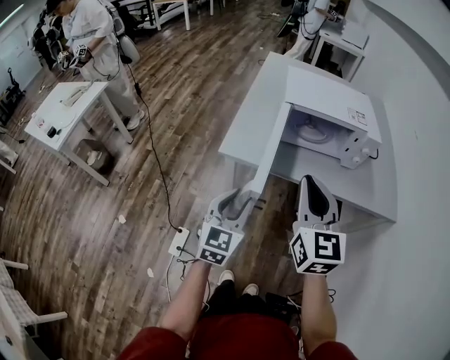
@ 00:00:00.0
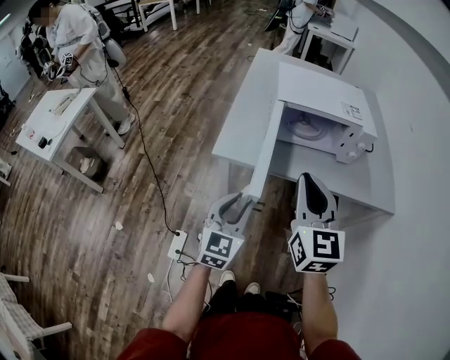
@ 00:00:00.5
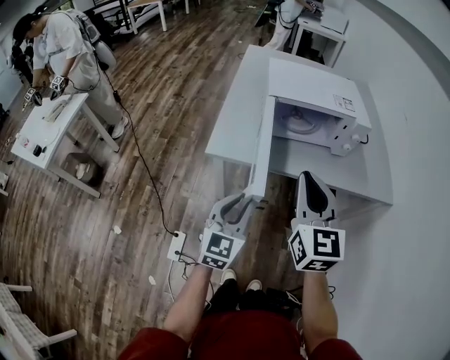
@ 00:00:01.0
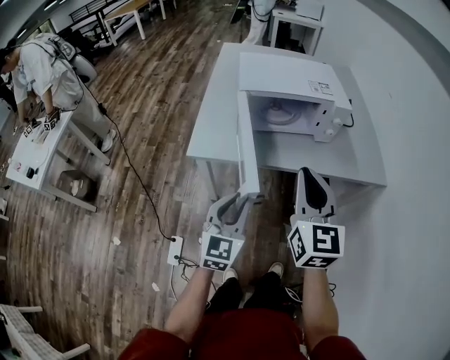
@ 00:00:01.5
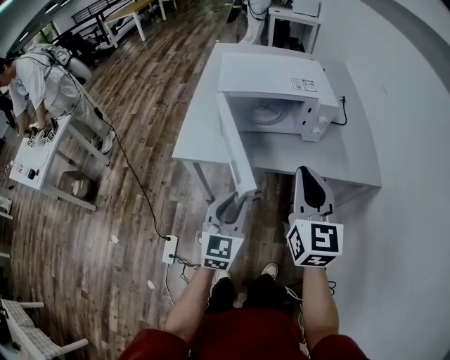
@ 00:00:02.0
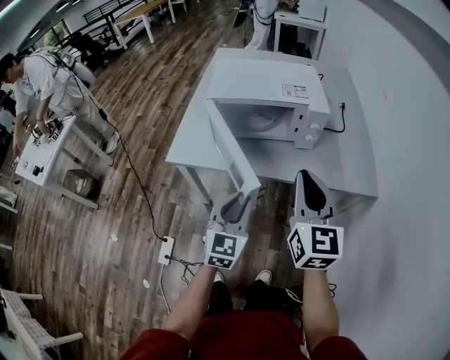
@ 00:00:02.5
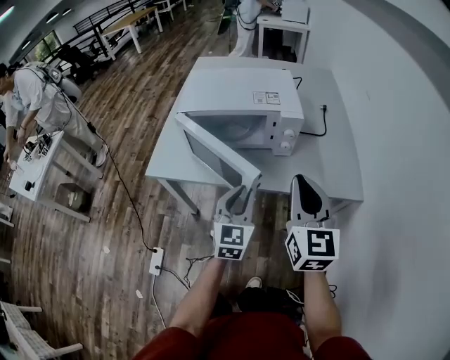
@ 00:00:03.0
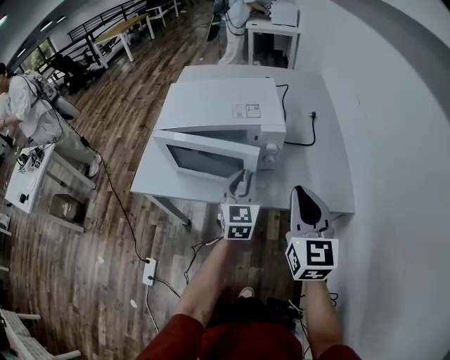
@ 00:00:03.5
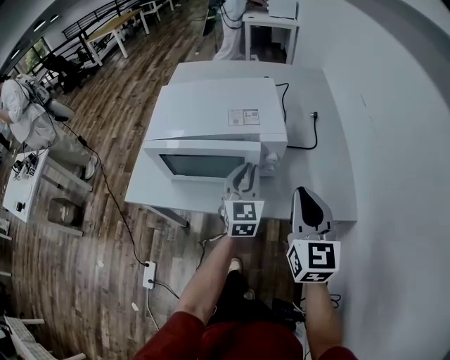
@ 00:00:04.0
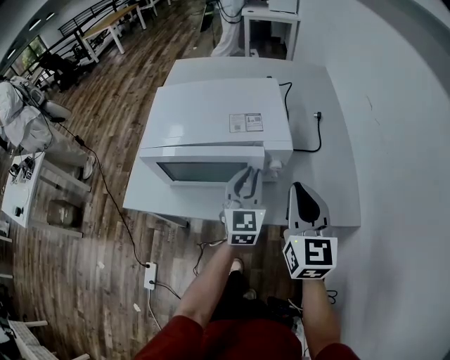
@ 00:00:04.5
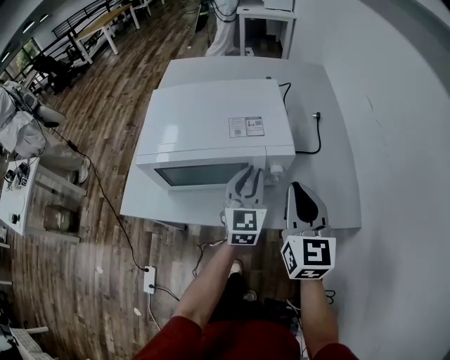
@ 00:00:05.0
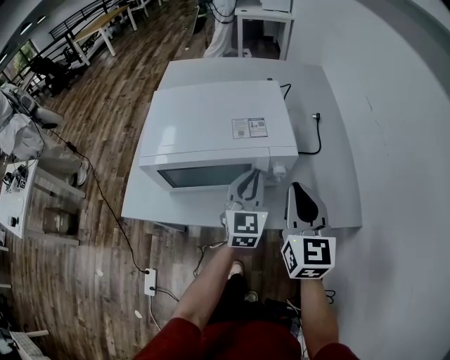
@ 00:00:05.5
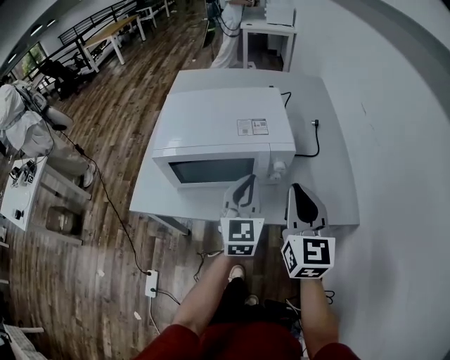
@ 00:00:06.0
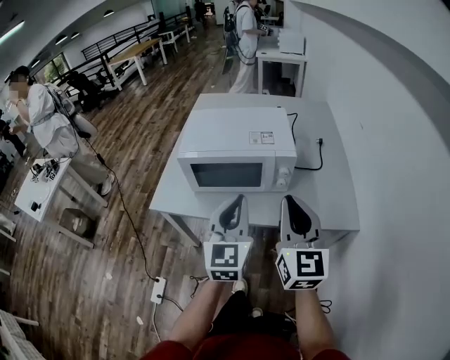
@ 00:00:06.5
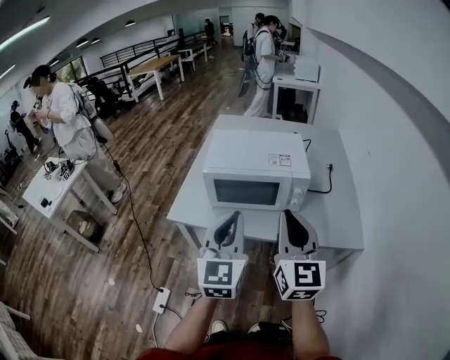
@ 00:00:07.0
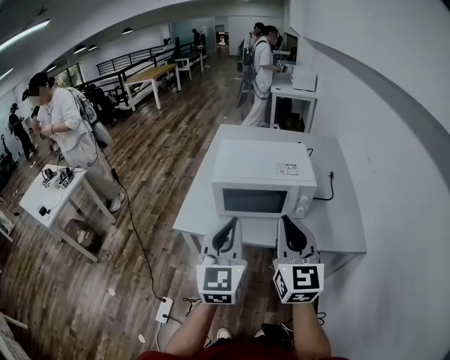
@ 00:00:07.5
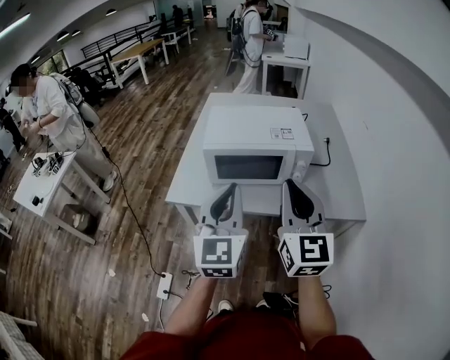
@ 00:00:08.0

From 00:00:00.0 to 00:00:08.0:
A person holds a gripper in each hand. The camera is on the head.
From 00:00:00.0 to 00:00:02.0: The two grippers go some 15 cm to the right.
From 00:00:02.0 to 00:00:04.0: The right gripper is displaced to the right and forward by some 25 cm, while the left gripper shifts about 35 cm forward and to the right.
From 00:00:04.0 to 00:00:06.0: The right gripper moves approximately 5 cm. The left gripper shifts about 5 cm upward.
From 00:00:06.0 to 00:00:08.0: The left gripper goes about 30 cm backward, to the left and upward. Meanwhile the right gripper travels to the left, backward and upward by approximately 20 cm.

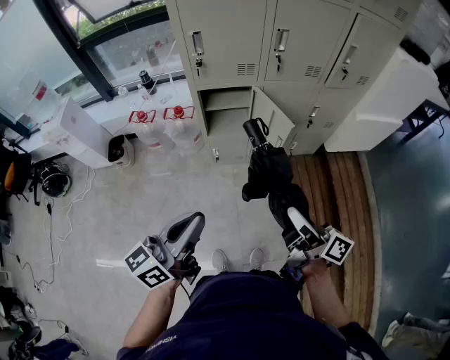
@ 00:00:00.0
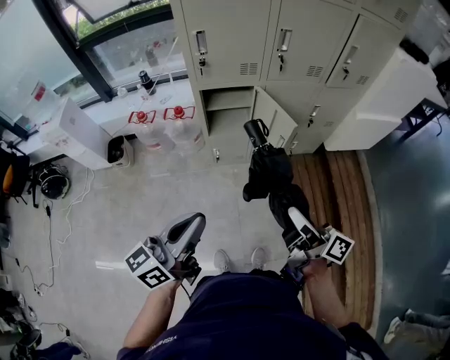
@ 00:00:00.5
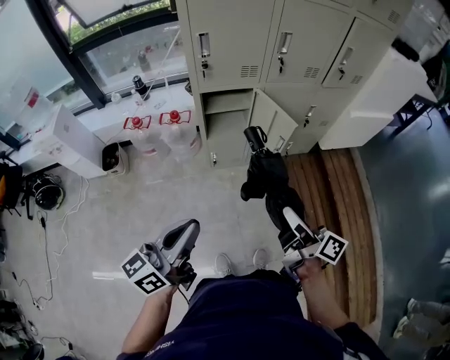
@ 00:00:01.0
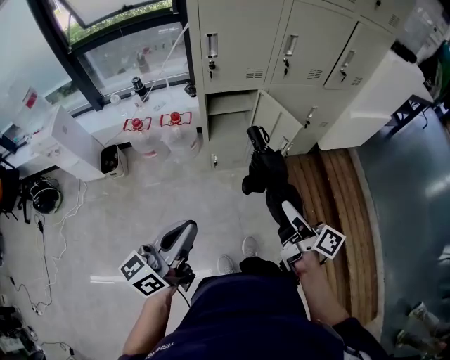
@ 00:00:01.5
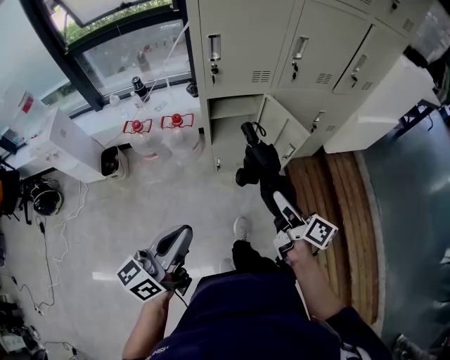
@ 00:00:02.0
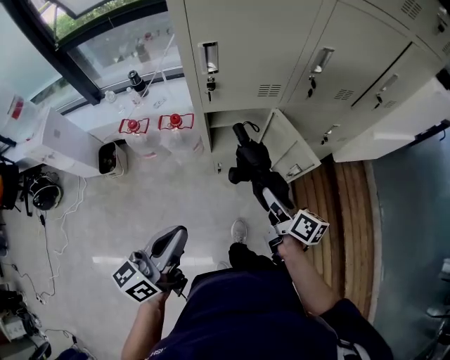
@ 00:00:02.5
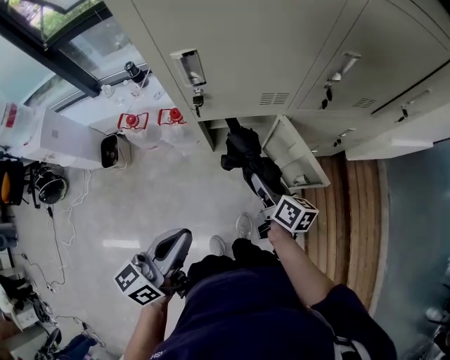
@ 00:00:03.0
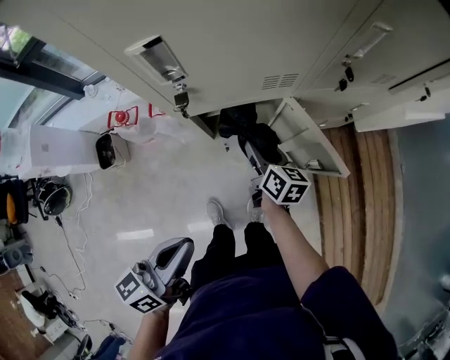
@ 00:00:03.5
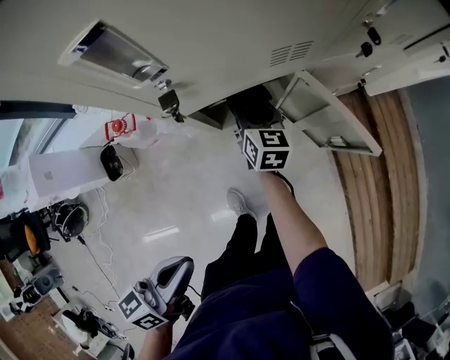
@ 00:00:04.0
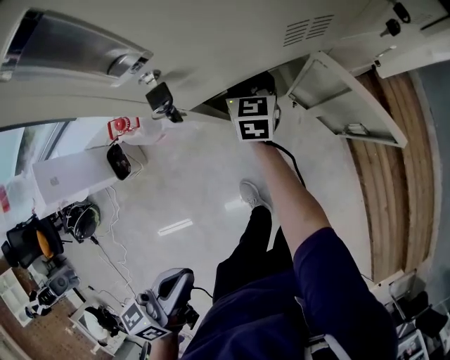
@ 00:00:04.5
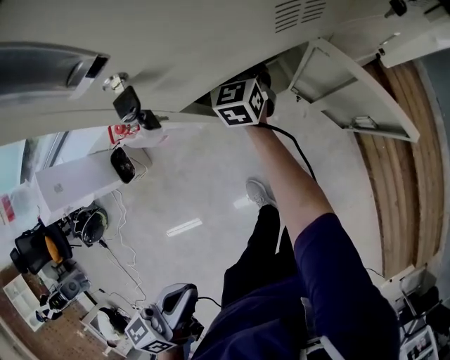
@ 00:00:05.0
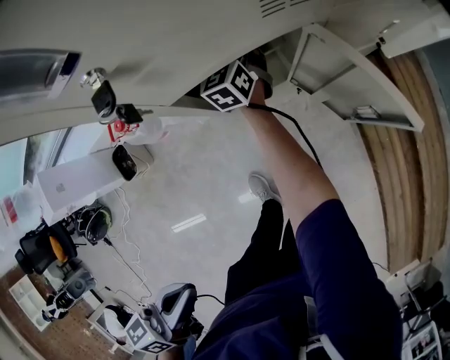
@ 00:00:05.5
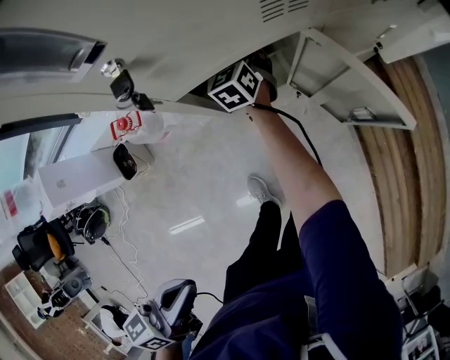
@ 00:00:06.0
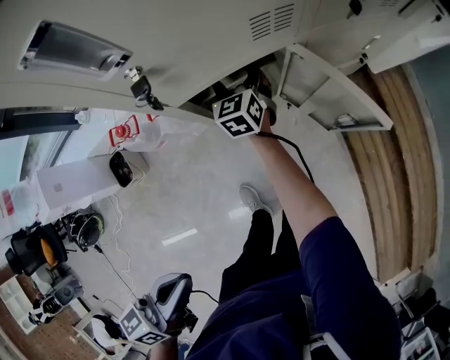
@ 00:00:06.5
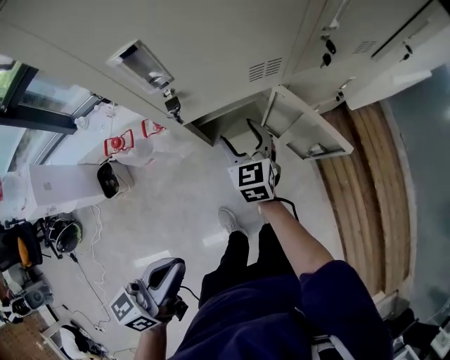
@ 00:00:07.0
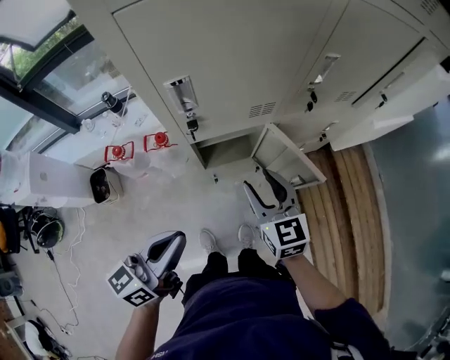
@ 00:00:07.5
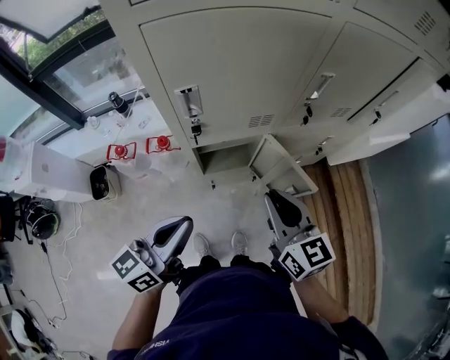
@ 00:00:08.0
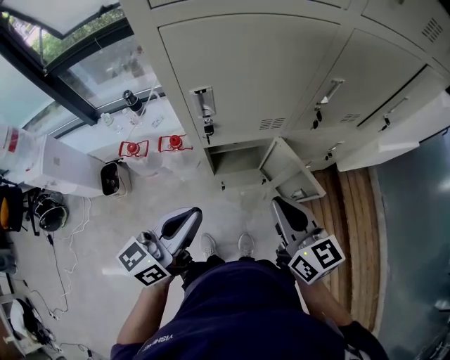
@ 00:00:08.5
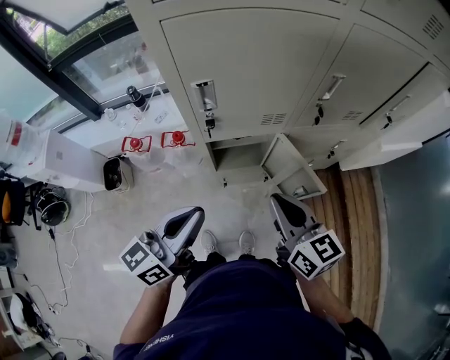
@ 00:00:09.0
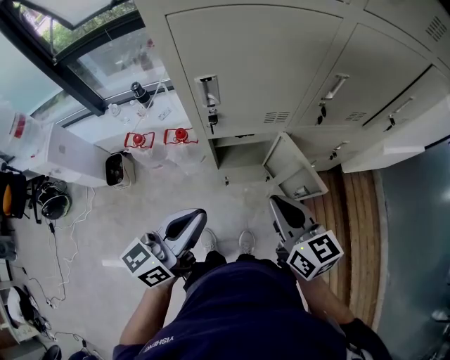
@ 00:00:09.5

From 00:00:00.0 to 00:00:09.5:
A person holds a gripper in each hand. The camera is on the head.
From 00:00:00.0 to 00:00:02.0: The left gripper shifts approximately 15 cm to the left. The right gripper heads to the left, forward and downward, covering roughly 15 cm.
From 00:00:02.0 to 00:00:04.0: The right gripper travels forward and downward by roughly 50 cm, and swivels approximately 40 degrees. The left gripper shifts approximately 25 cm forward and downward, and changes its angle by about 30 degrees.
From 00:00:04.0 to 00:00:05.5: The right gripper heads forward, to the left and downward, covering about 15 cm, and turns by about 40 degrees.
From 00:00:05.5 to 00:00:07.5: The right gripper moves upward, backward and to the right, roughly 40 cm, and rotates roughly 20 degrees; the left gripper is displaced upward and forward by some 10 cm, and changes its angle by approximately 30 degrees.
From 00:00:07.5 to 00:00:09.5: The left gripper ends up roughly 5 cm from where it was; the right gripper is displaced upward and backward by about 10 cm, rotates approximately 20 degrees, and closes its fingers.

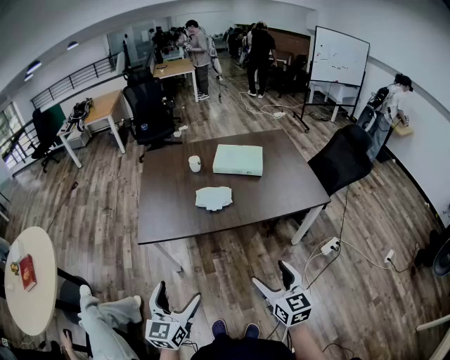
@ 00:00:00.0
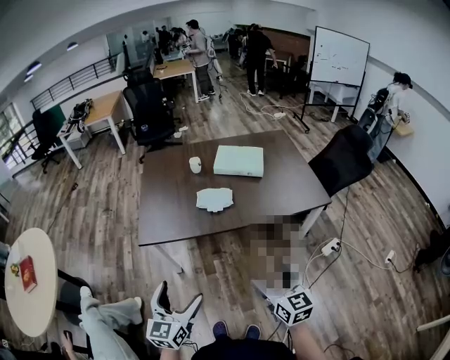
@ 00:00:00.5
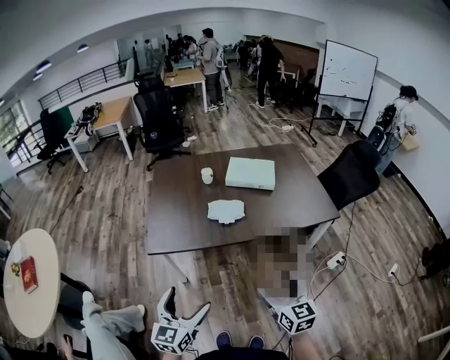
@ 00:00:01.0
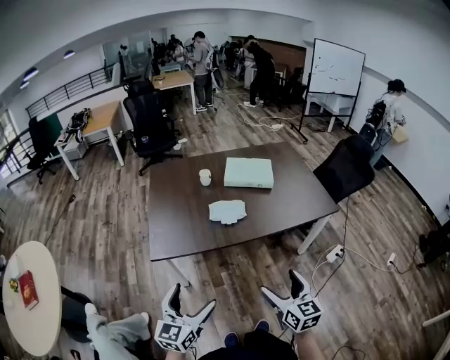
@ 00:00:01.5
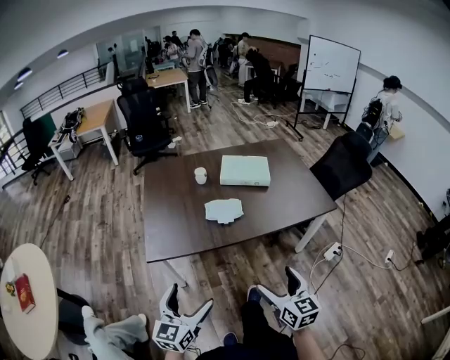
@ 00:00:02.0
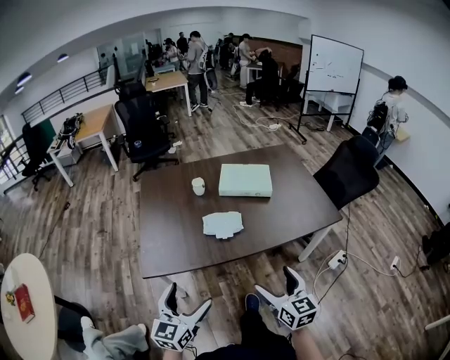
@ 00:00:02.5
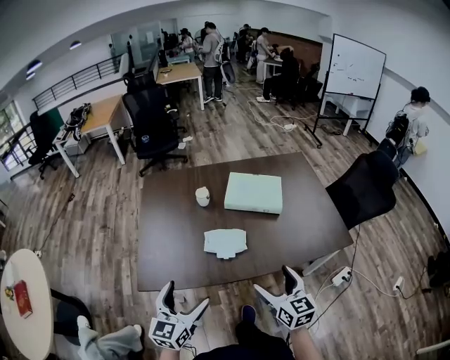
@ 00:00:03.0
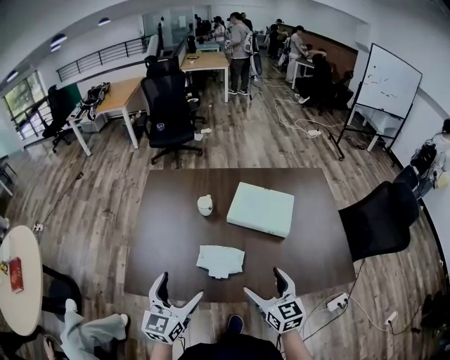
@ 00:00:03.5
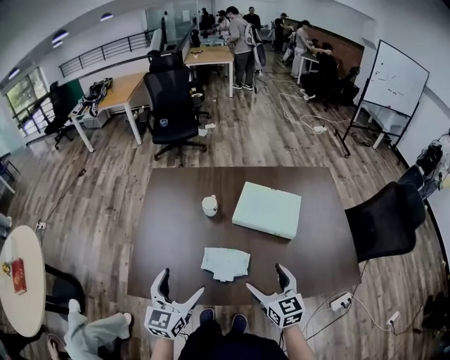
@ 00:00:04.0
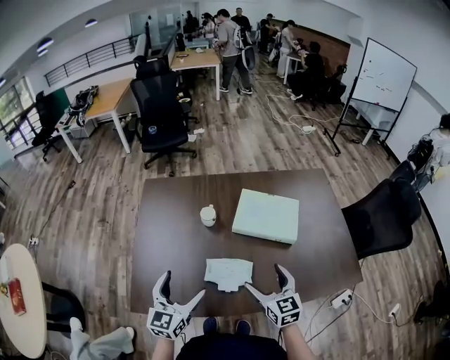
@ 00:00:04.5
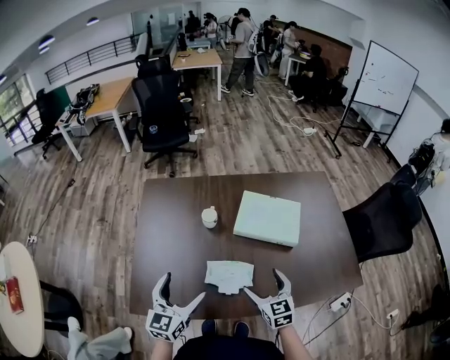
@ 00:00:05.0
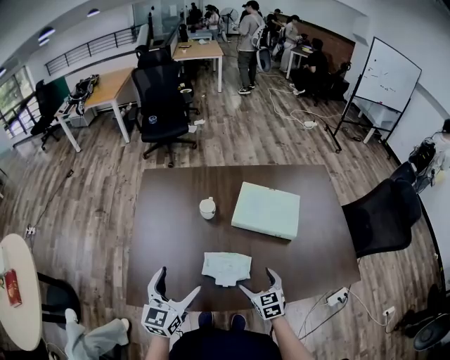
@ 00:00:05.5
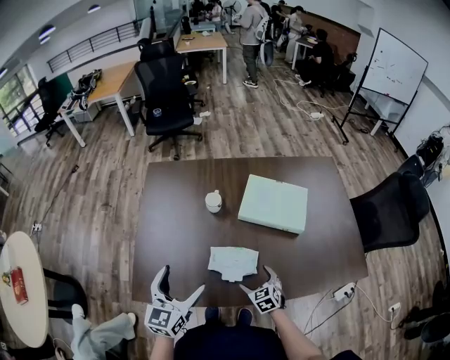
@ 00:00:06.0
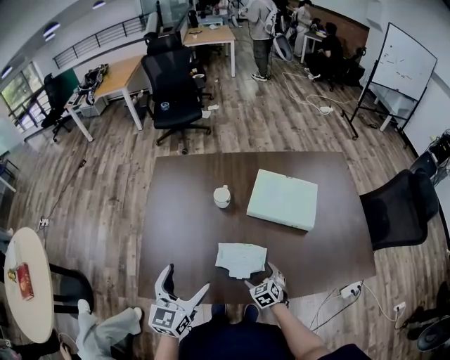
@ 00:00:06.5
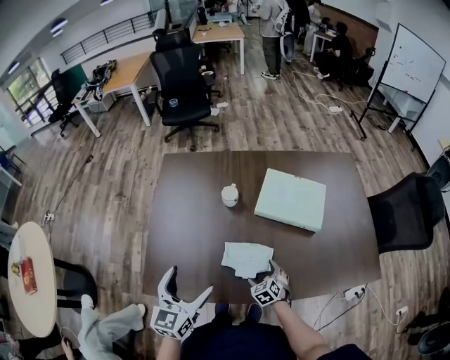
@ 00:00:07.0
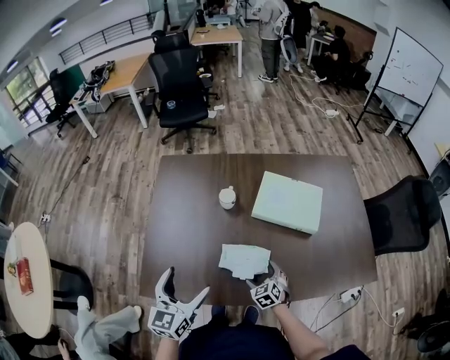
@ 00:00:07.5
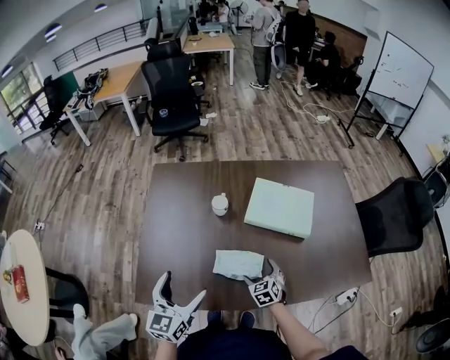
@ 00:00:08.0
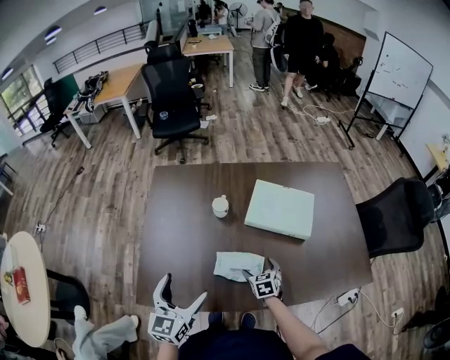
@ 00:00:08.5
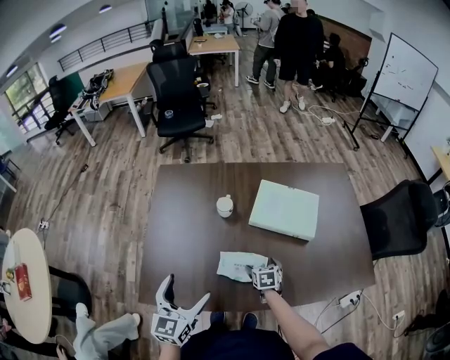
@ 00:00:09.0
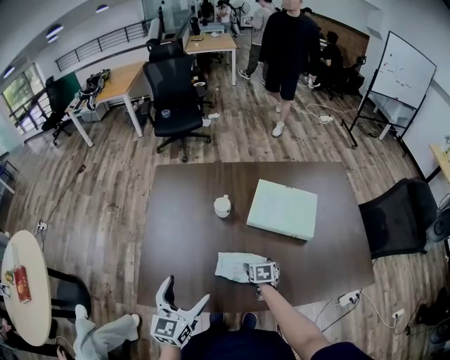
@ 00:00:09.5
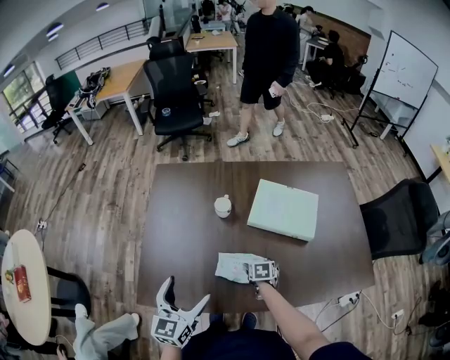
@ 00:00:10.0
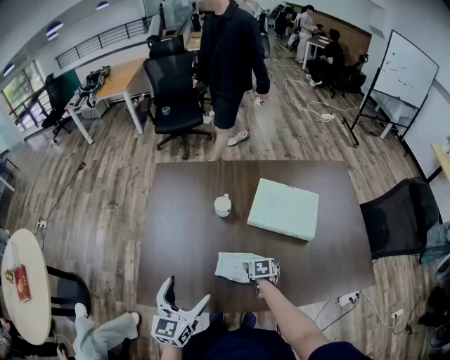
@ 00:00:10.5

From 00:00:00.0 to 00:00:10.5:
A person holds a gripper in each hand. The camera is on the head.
From 00:00:00.0 to 00:00:02.0: The left gripper goes about 10 cm to the left and forward; the right gripper goes some 10 cm to the left.
From 00:00:02.0 to 00:00:04.0: The pair of grippers is taken forward, some 40 cm.
From 00:00:04.0 to 00:00:06.5: The left gripper ends up roughly 5 cm from where it was, while the right gripper travels downward by about 25 cm, and tips its fingers downward by some 30 degrees.
From 00:00:06.5 to 00:00:08.5: The right gripper is displaced forward by about 5 cm.
From 00:00:08.5 to 00:00:10.5: The right gripper moves downward, approximately 5 cm, and swivels some 20 degrees.
